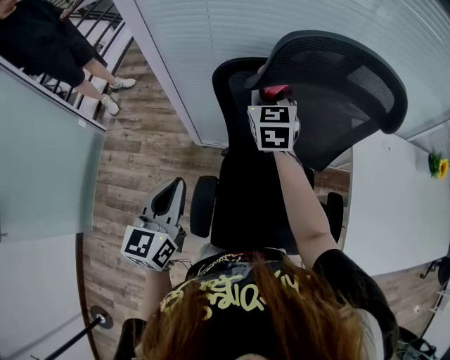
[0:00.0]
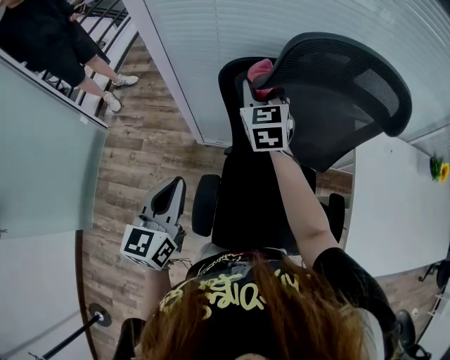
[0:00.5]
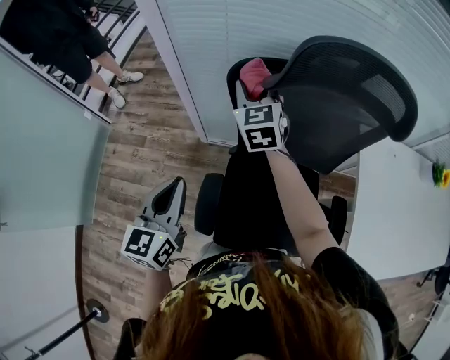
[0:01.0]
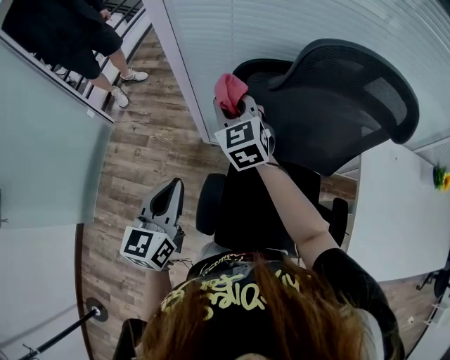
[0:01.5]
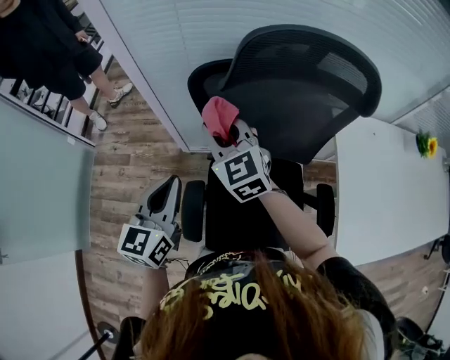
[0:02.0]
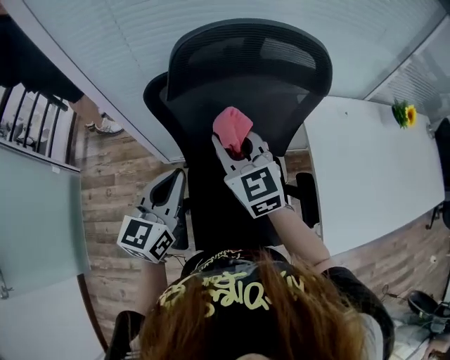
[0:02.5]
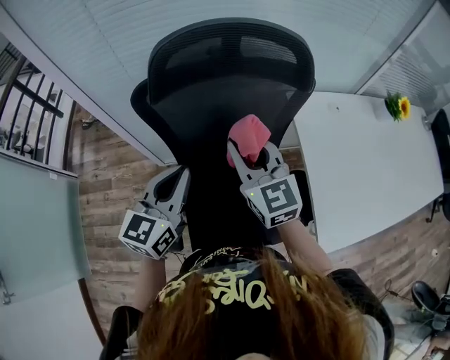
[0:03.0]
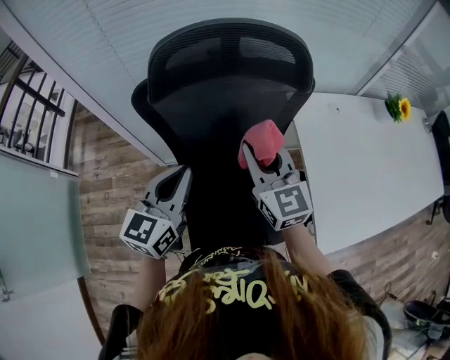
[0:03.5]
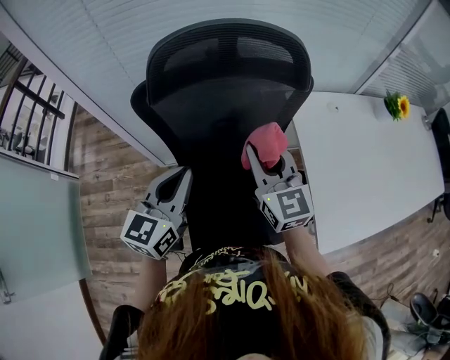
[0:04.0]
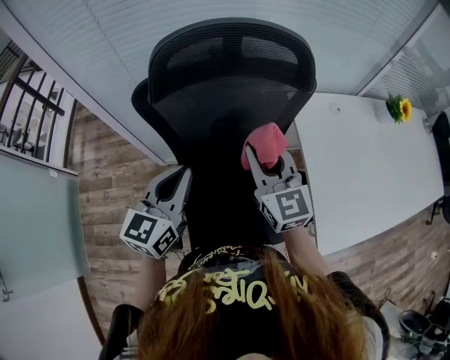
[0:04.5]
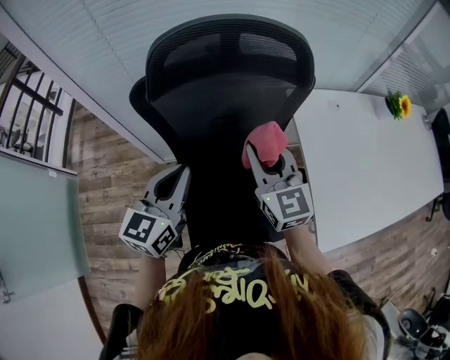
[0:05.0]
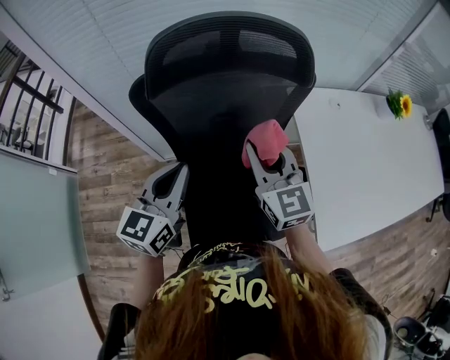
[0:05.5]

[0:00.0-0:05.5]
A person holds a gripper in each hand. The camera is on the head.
0:00.0 to 0:02.0: The right gripper goes approximately 15 cm backward and to the left, and rotates about 20 degrees.
0:02.0 to 0:03.5: The right gripper travels to the right by about 25 cm, and rotates roughly 20 degrees, while the left gripper is displaced to the right by roughly 15 cm.
0:03.5 to 0:05.5: The two grippers keep their place.

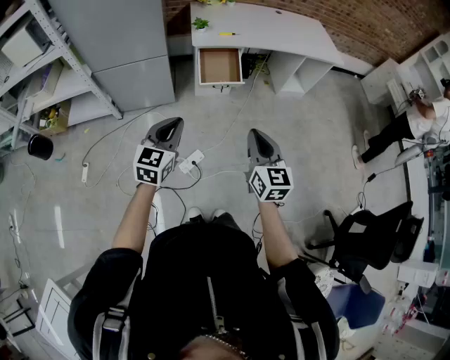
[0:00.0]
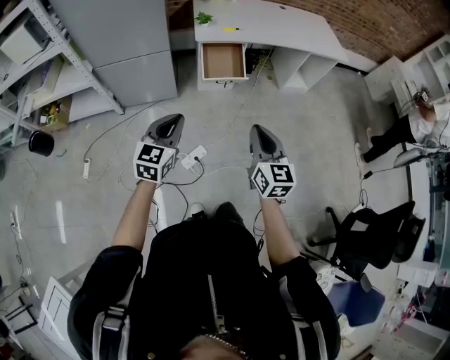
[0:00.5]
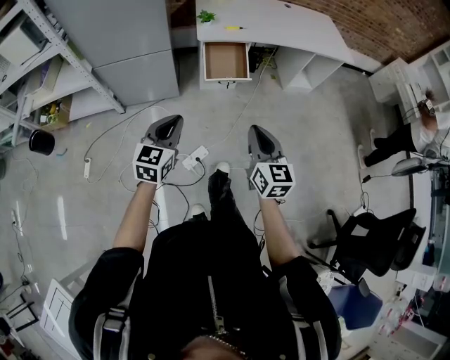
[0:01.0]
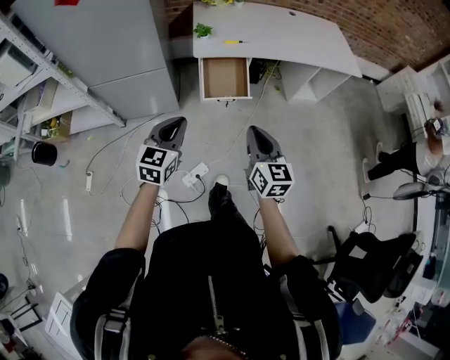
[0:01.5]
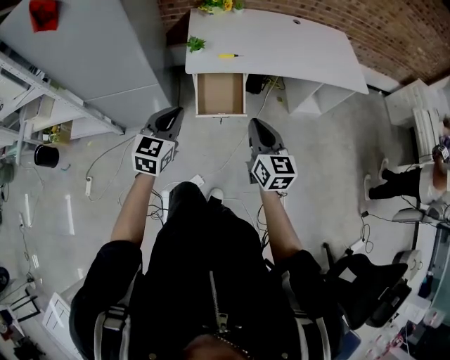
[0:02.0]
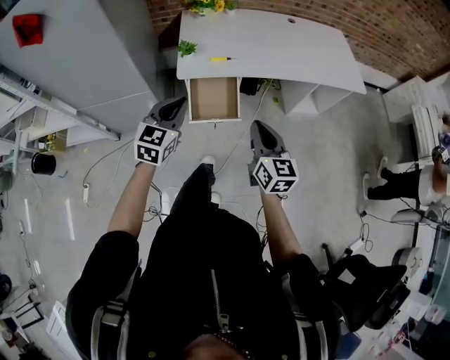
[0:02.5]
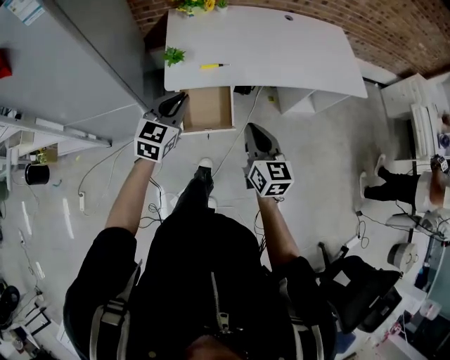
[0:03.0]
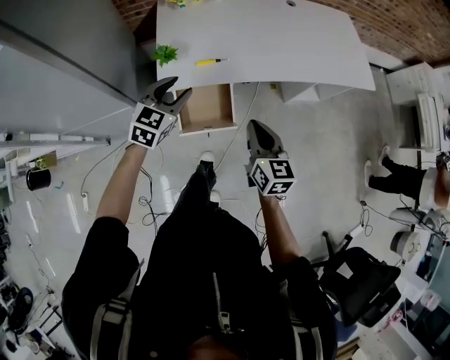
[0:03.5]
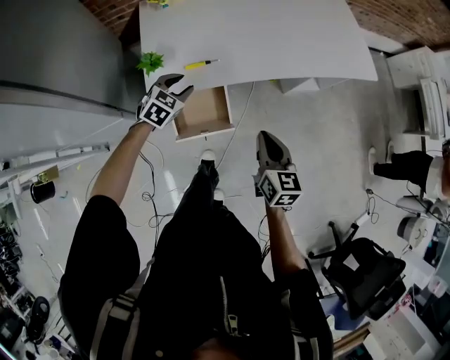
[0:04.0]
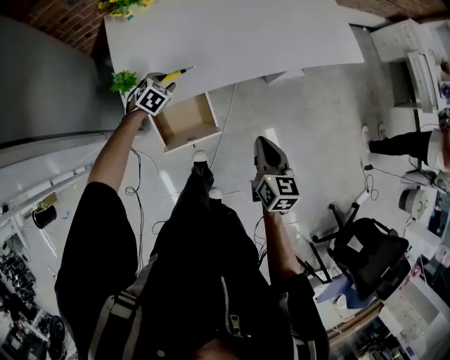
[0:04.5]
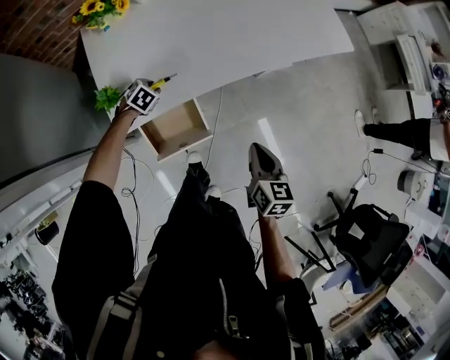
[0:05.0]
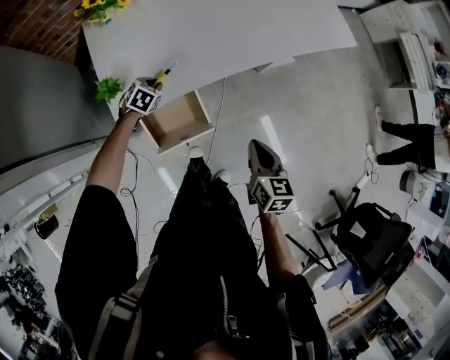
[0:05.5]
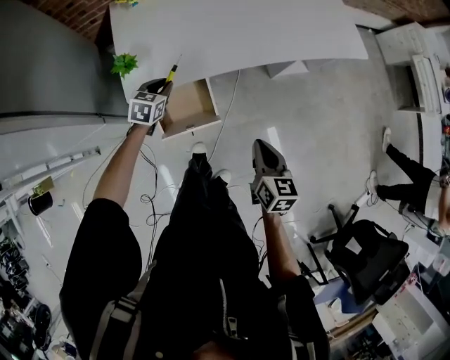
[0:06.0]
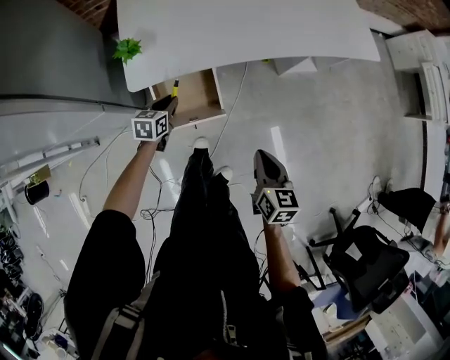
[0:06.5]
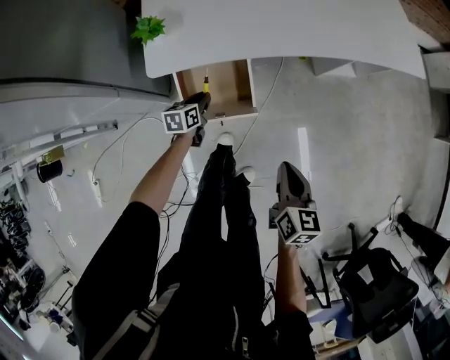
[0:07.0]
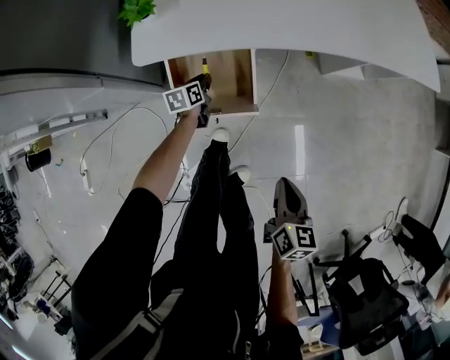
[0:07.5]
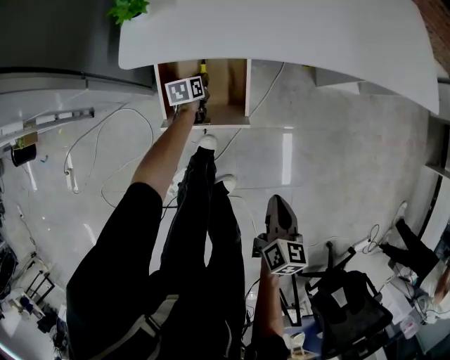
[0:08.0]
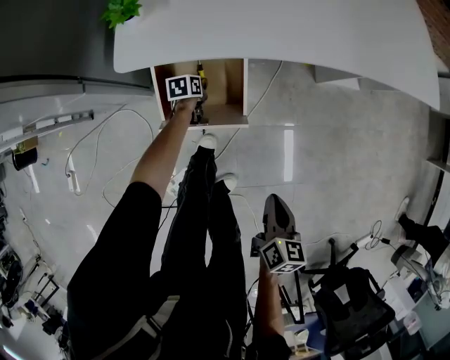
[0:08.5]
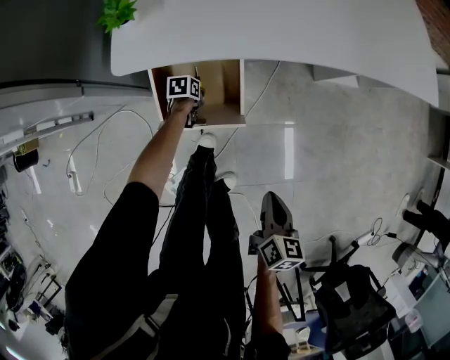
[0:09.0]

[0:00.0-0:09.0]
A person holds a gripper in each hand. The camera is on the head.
0:00.0 to 0:02.0: The grippers both shift forward by approximately 30 cm.
0:02.0 to 0:04.5: The left gripper goes about 50 cm forward and downward, tips its fingers downward by some 40 degrees, and opens its fingers. The right gripper heads forward, downward and to the right, covering about 25 cm, and changes its angle by approximately 30 degrees.
0:04.5 to 0:07.0: The left gripper moves up and down over some 20 cm, changing direction 2 times, twists approximately 60 degrees counterclockwise, seen from behind, and closes its fingers, while the right gripper is displaced downward and backward by approximately 15 cm.
0:07.0 to 0:09.0: The right gripper is displaced downward by approximately 10 cm. The left gripper travels downward by roughly 20 cm, and turns by some 30 degrees.

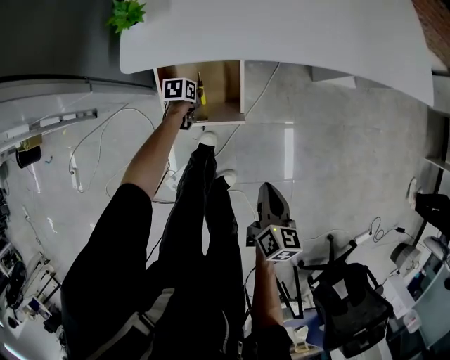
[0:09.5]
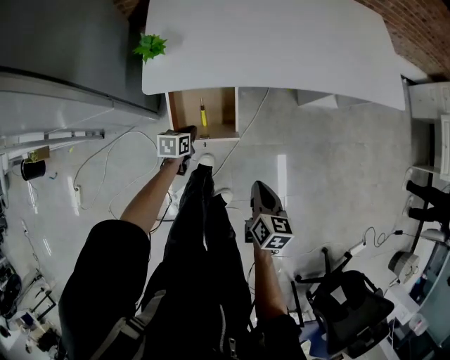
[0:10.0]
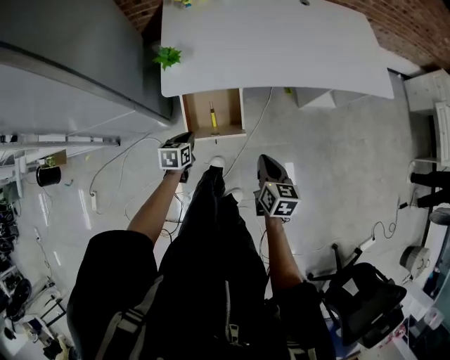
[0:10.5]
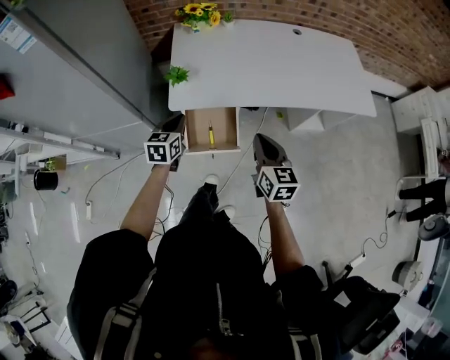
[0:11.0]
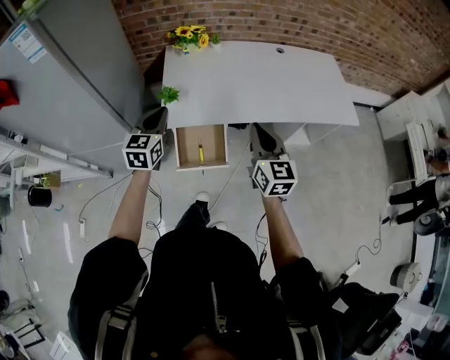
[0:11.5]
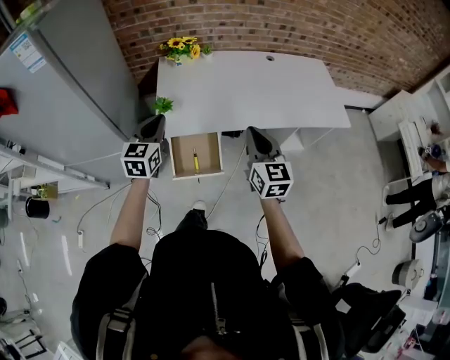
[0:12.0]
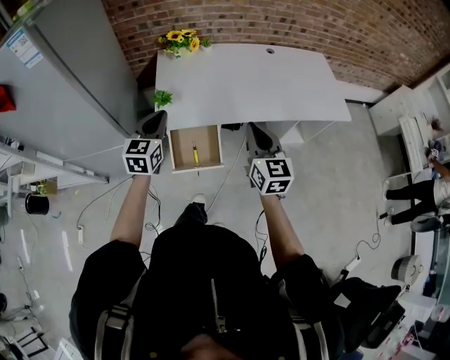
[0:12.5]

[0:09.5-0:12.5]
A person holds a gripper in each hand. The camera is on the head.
0:09.5 to 0:11.0: The right gripper is displaced upward and forward by about 30 cm, and swivels about 30 degrees. Meanwhile the left gripper shifts approximately 50 cm upward, and angles its fingers upward, by about 30 degrees.
0:11.0 to 0:12.5: The grippers both shift upward by some 15 cm.

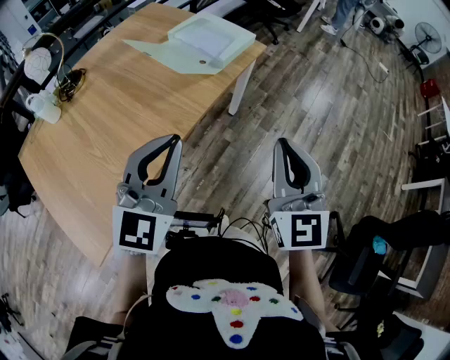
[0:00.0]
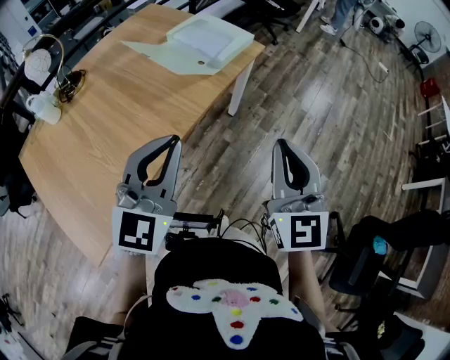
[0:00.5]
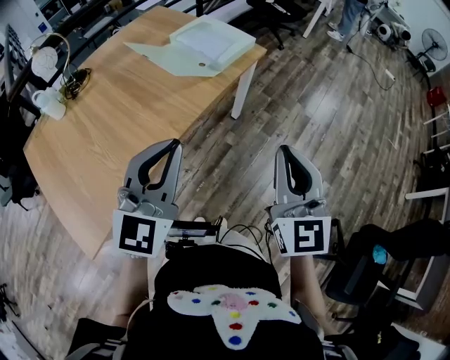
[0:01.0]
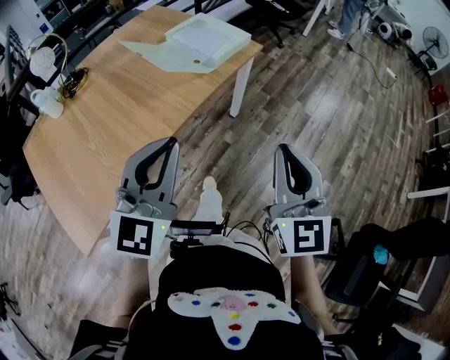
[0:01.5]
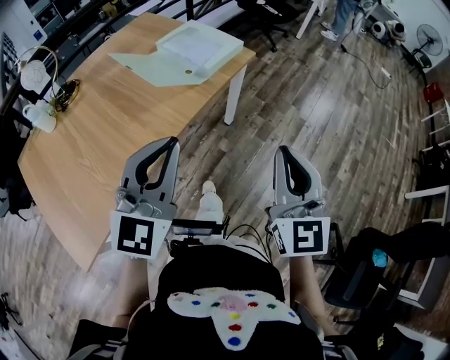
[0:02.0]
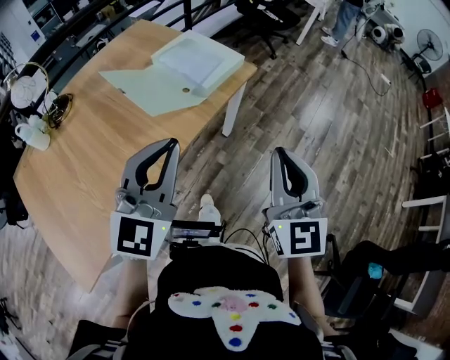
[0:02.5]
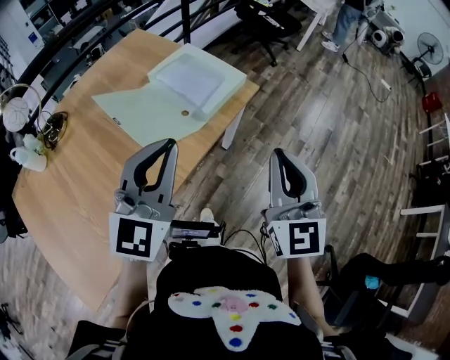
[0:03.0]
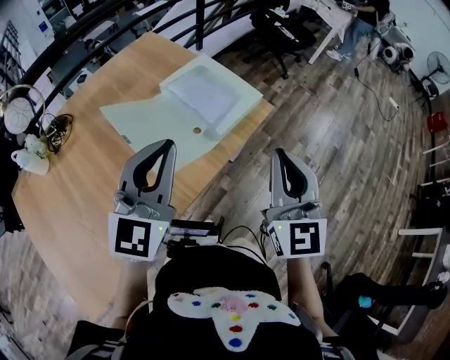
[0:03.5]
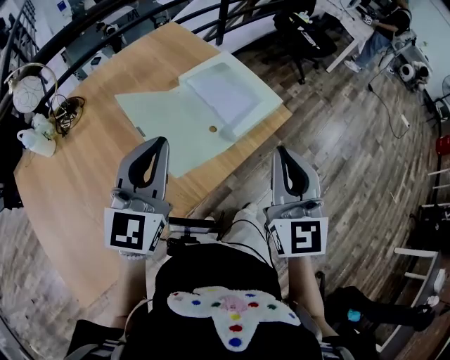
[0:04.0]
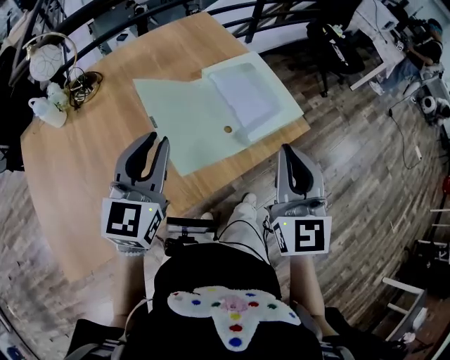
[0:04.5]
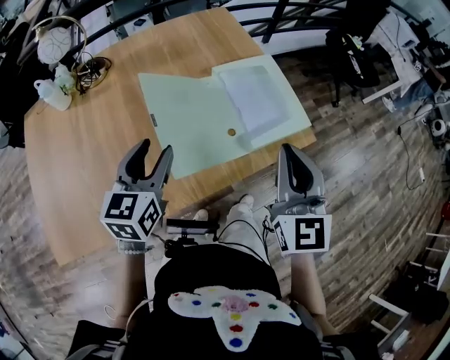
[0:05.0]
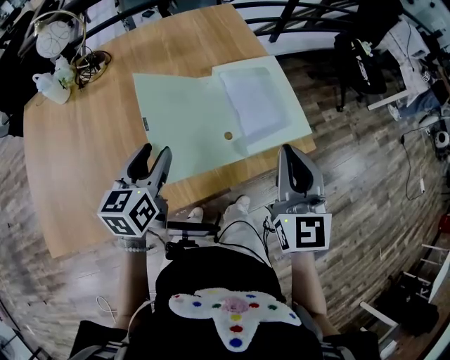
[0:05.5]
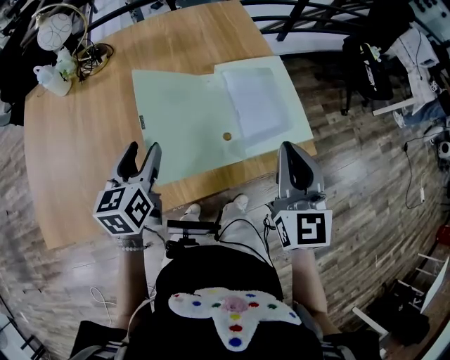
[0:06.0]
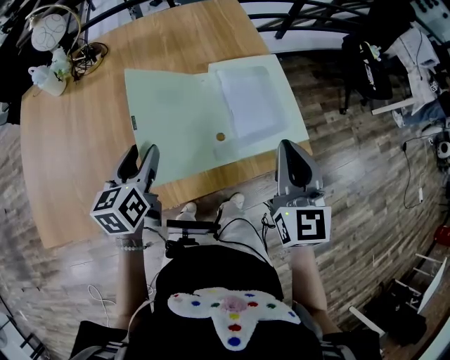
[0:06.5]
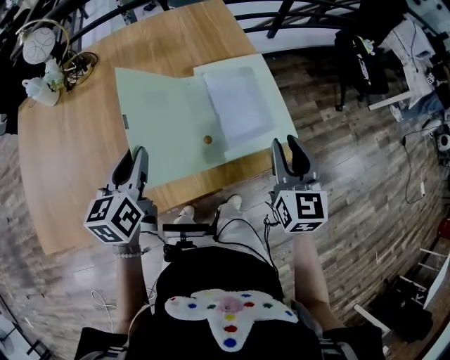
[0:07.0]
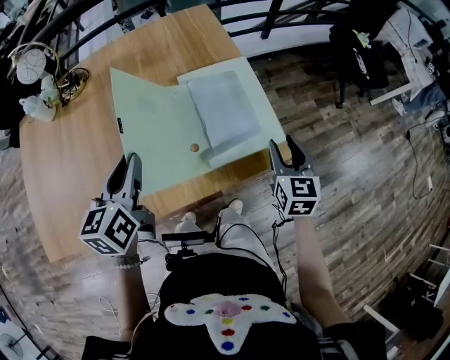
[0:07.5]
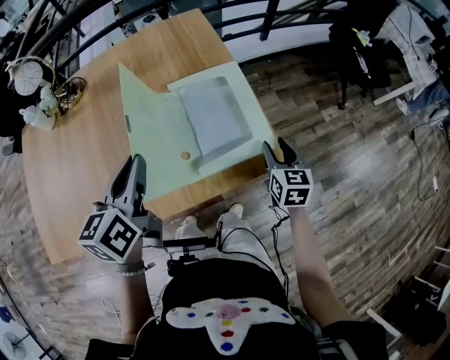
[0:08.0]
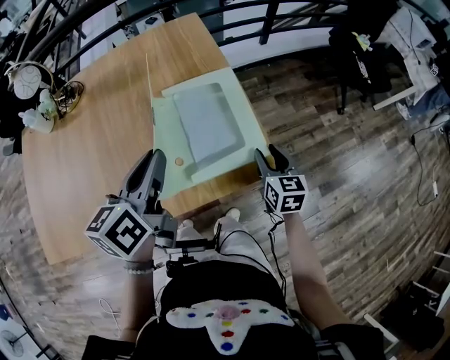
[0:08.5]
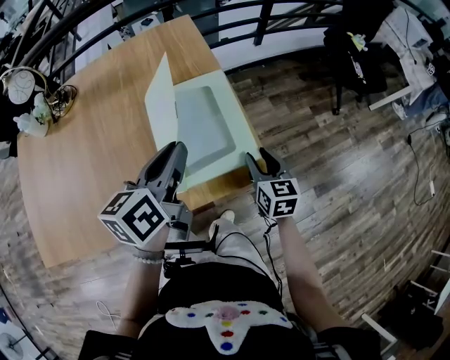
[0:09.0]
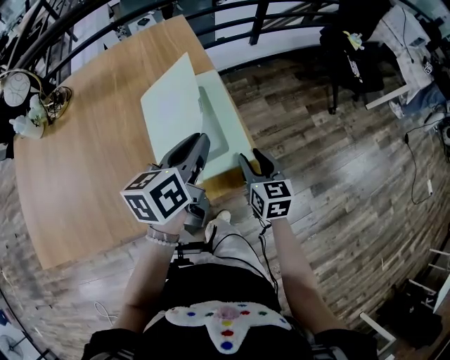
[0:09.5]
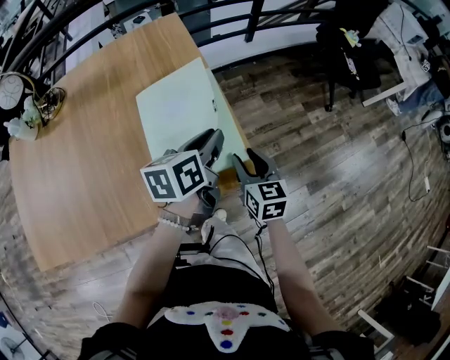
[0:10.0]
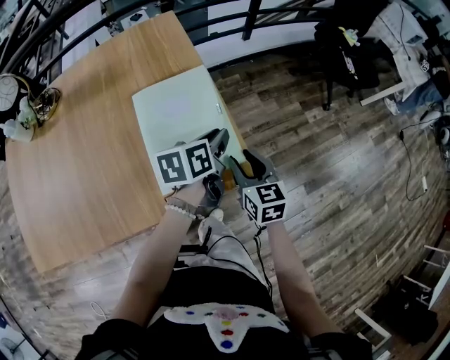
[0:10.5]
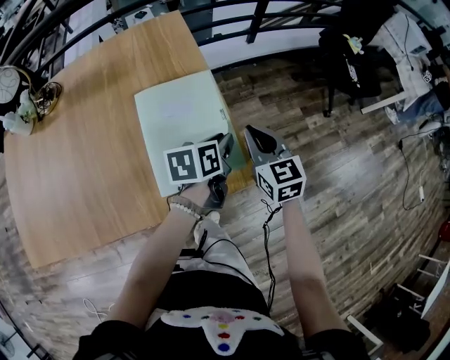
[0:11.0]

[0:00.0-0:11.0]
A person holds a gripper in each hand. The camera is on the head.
0:00.0 to 0:02.0: Both grippers travel together to the right, about 10 cm.
0:02.0 to 0:03.5: Both grippers move forward, approximately 30 cm.
0:03.5 to 0:05.5: The left gripper travels downward by roughly 15 cm, swivels roughly 50 degrees, and opens up. Meanwhile the right gripper changes place by some 15 cm, and changes its angle by approximately 30 degrees.
0:05.5 to 0:07.5: The left gripper goes about 10 cm to the right, and closes its fingers. Meanwhile the right gripper travels to the right, downward and forward by roughly 25 cm, and opens.
0:07.5 to 0:09.0: The right gripper heads downward, covering about 5 cm, while the left gripper travels to the right by some 20 cm, and rotates about 20 degrees.
0:09.0 to 0:11.0: The right gripper travels forward and upward by some 10 cm, and closes up. Meanwhile the left gripper moves downward, to the right and forward, about 20 cm, and rotates about 20 degrees.
